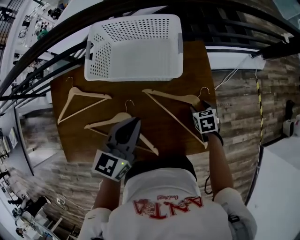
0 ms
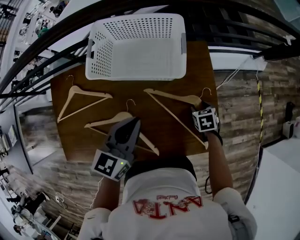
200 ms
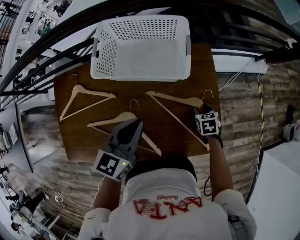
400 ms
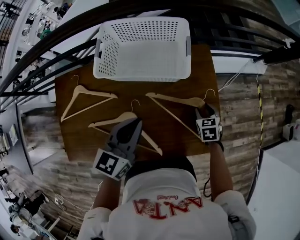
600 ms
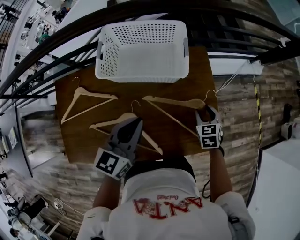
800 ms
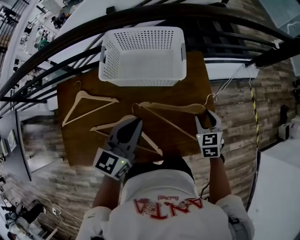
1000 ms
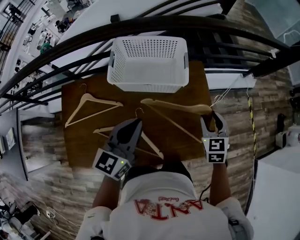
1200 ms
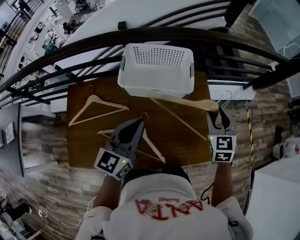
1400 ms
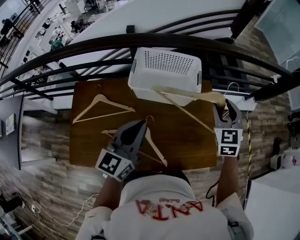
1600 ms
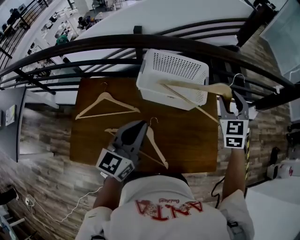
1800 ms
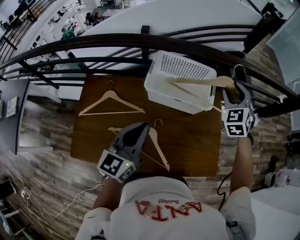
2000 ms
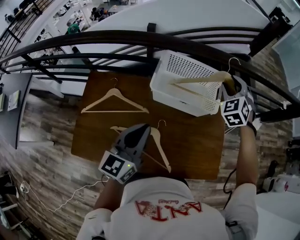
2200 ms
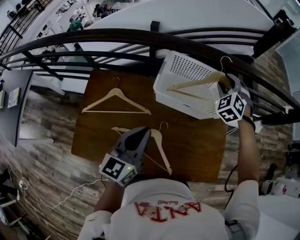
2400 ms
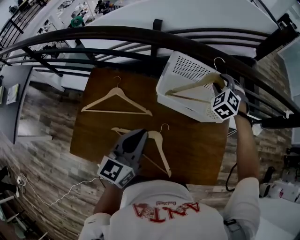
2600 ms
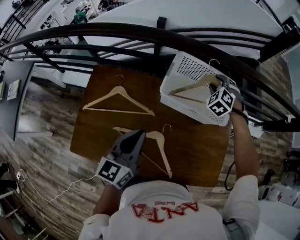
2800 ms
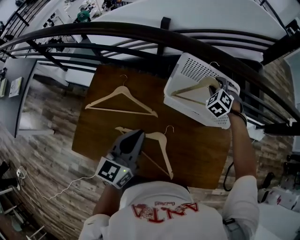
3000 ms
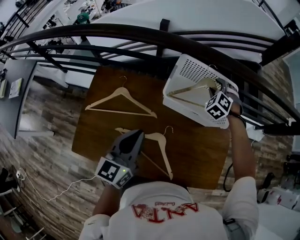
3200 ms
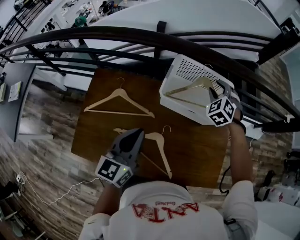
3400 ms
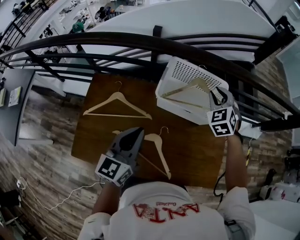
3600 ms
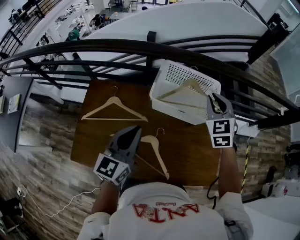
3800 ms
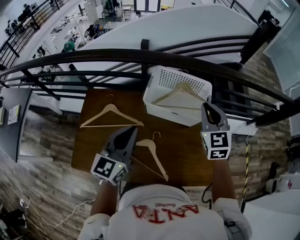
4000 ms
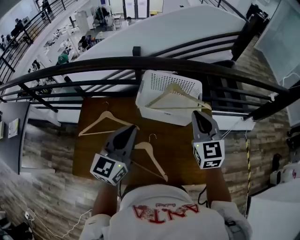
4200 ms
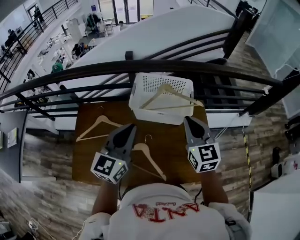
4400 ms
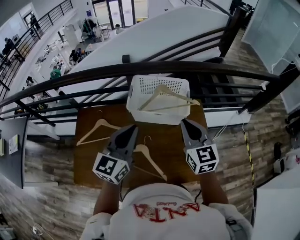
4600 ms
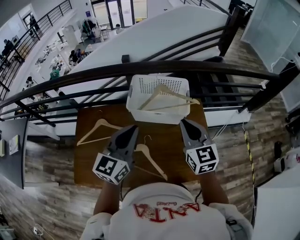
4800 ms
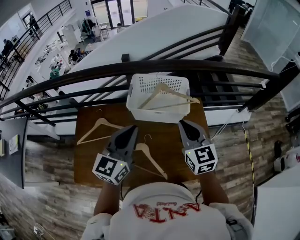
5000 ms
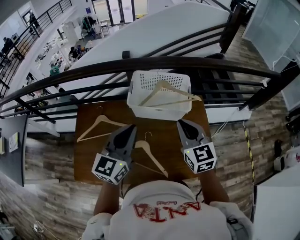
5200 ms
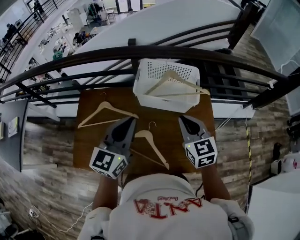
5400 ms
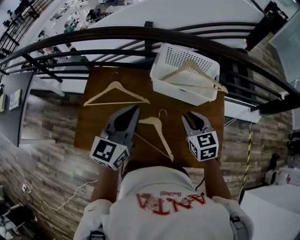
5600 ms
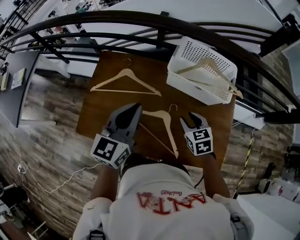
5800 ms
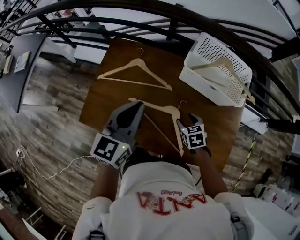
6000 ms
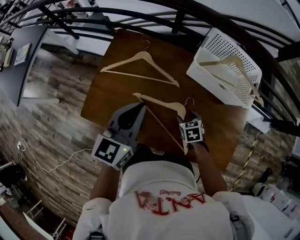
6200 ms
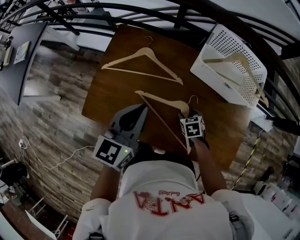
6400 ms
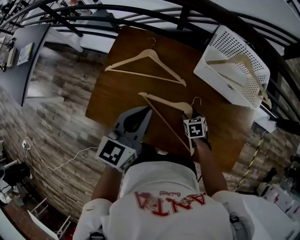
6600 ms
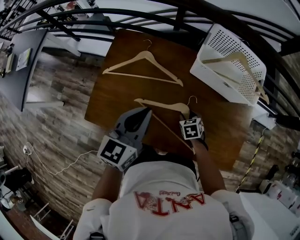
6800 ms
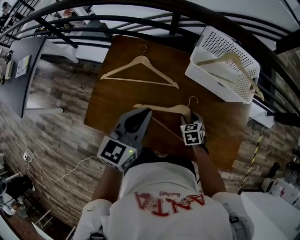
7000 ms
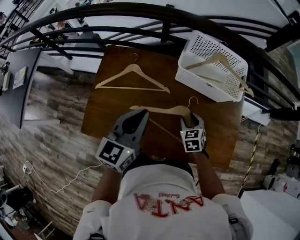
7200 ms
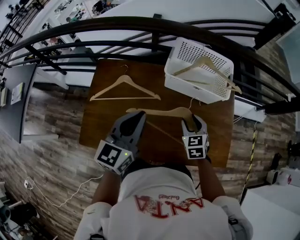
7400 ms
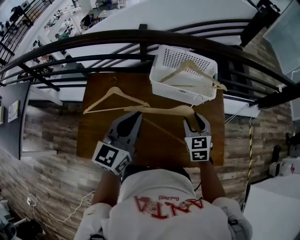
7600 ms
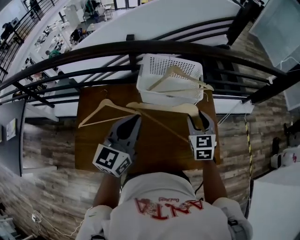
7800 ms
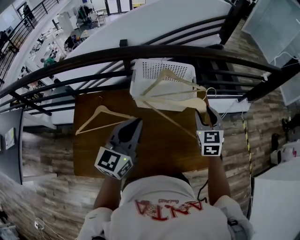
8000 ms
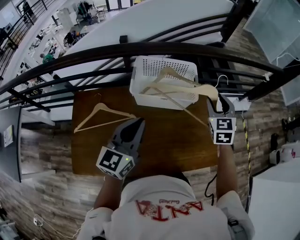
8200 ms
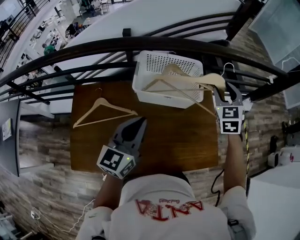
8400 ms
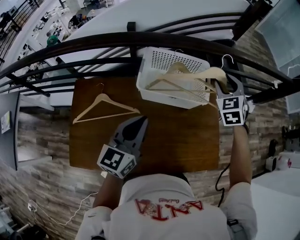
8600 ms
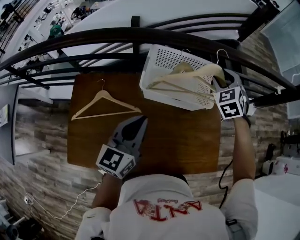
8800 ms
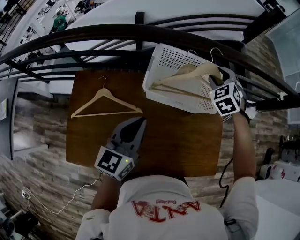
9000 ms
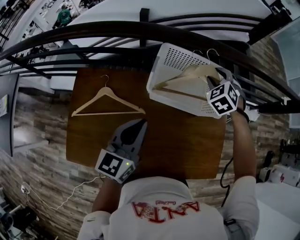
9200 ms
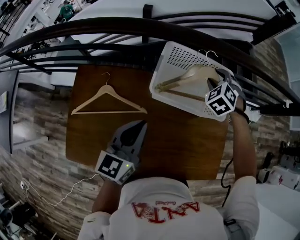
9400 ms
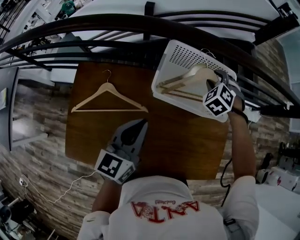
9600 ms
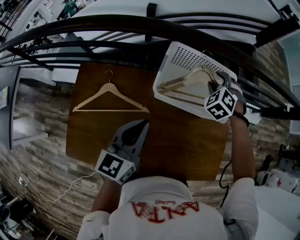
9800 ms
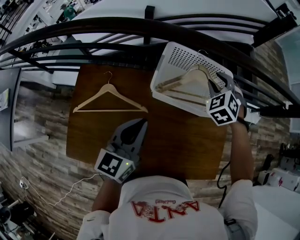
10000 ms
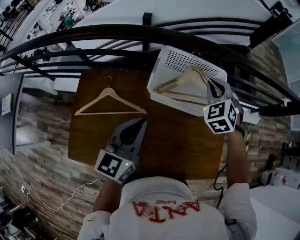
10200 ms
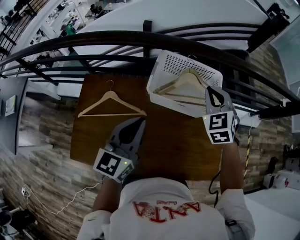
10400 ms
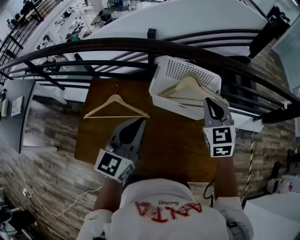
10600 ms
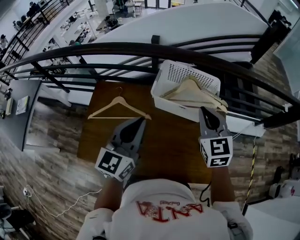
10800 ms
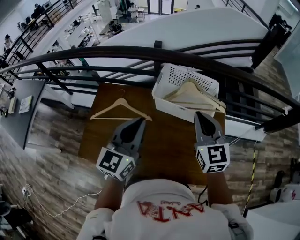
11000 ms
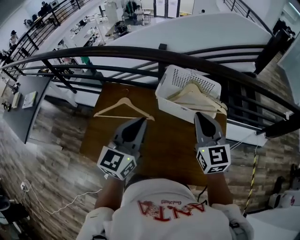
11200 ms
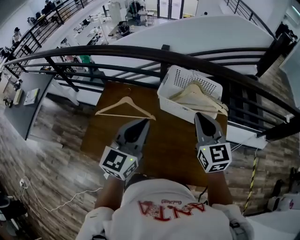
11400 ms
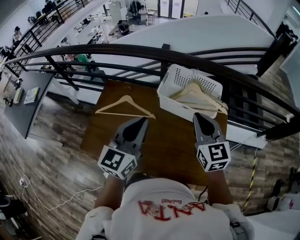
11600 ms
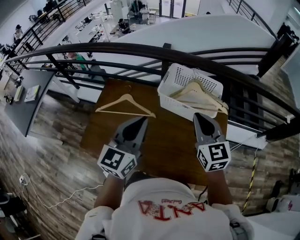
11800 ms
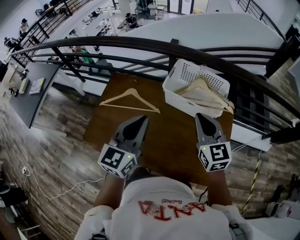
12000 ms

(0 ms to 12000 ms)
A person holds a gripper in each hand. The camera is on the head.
0 ms - 1600 ms: The left gripper moves upward, to the left and backward, some 15 cm. Meanwhile the right gripper is displaced upward by about 35 cm, and tilts its fingers about 40 degrees upward.
1600 ms - 3000 ms: The right gripper shifts approximately 30 cm forward, to the left and downward, and twists roughly 50 degrees counterclockwise, seen from behind; the left gripper heads to the left and downward, covering about 10 cm.
3000 ms - 4400 ms: The right gripper is displaced backward and upward by roughly 30 cm, rolls clockwise, seen from behind, by roughly 60 degrees, and closes up, while the left gripper travels upward and to the right by some 15 cm, and turns by about 20 degrees.
4400 ms - 6000 ms: The right gripper travels downward and to the left by roughly 35 cm, tilts its fingers some 50 degrees downward, and opens its fingers, while the left gripper travels to the left and downward by roughly 15 cm, and rotates some 20 degrees.
6000 ms - 7600 ms: The right gripper heads upward and to the right, covering some 15 cm, and rotates approximately 30 degrees. Meanwhile the left gripper heads to the right, covering roughly 5 cm.
7600 ms - 9000 ms: The right gripper is displaced forward by about 25 cm, and swivels approximately 40 degrees; the left gripper heads forward, covering some 10 cm.
9000 ms - 10400 ms: The right gripper shifts approximately 10 cm backward and upward, and closes up.
10400 ms - 12000 ms: The left gripper heads backward, covering roughly 10 cm; the right gripper is displaced backward by approximately 15 cm, and changes its angle by approximately 40 degrees.

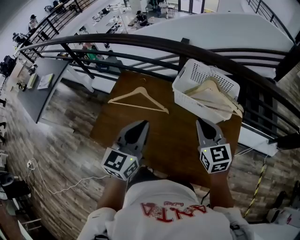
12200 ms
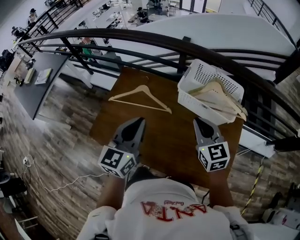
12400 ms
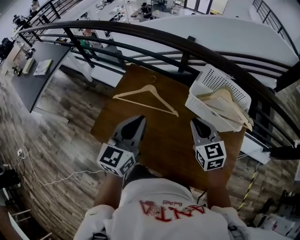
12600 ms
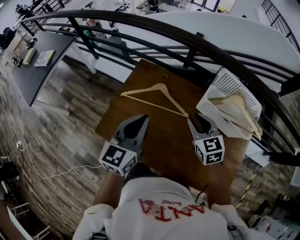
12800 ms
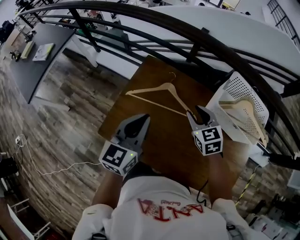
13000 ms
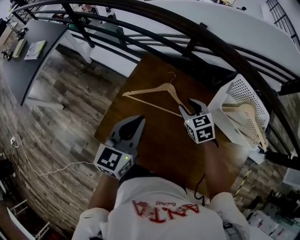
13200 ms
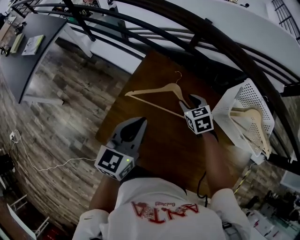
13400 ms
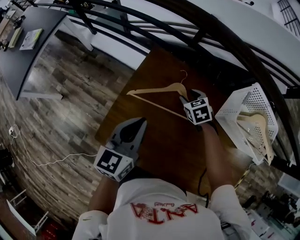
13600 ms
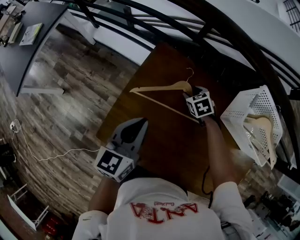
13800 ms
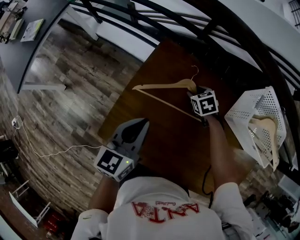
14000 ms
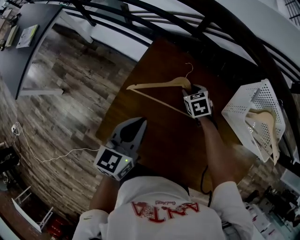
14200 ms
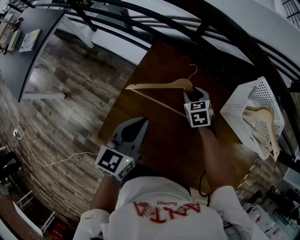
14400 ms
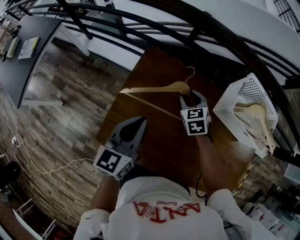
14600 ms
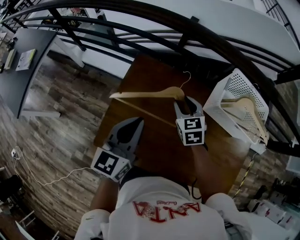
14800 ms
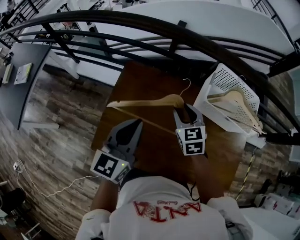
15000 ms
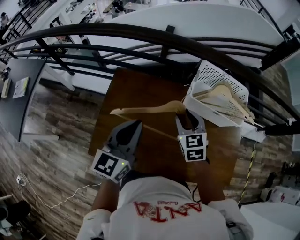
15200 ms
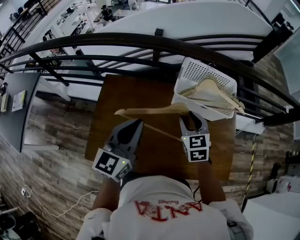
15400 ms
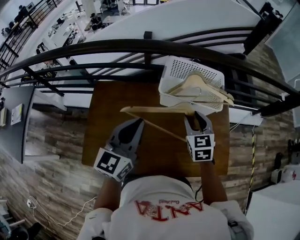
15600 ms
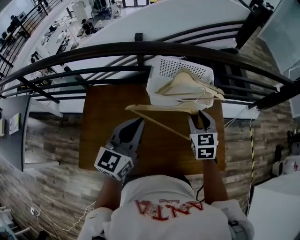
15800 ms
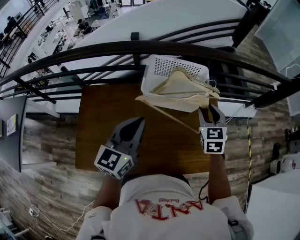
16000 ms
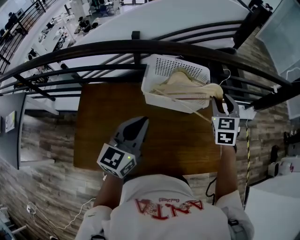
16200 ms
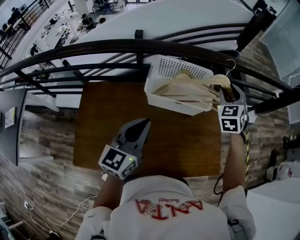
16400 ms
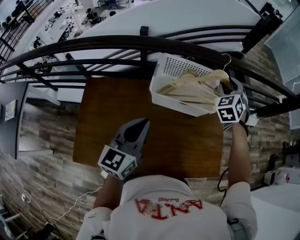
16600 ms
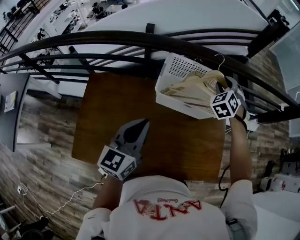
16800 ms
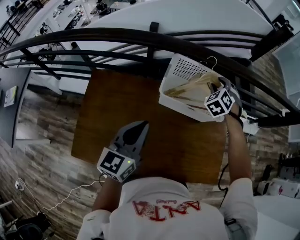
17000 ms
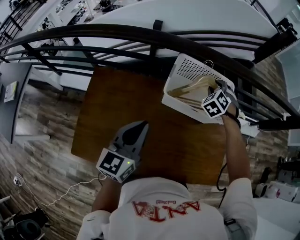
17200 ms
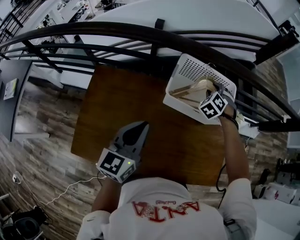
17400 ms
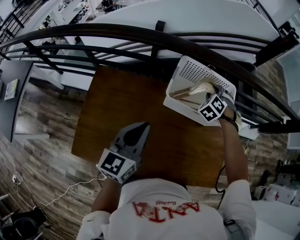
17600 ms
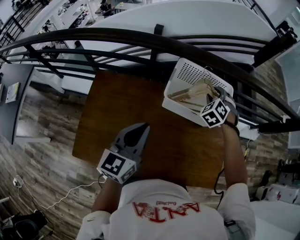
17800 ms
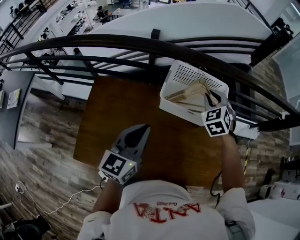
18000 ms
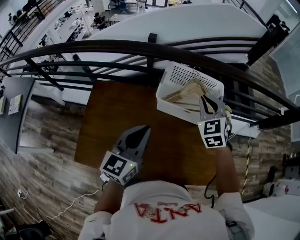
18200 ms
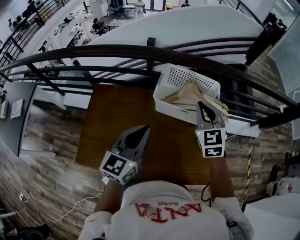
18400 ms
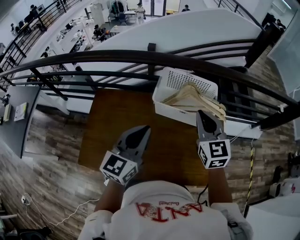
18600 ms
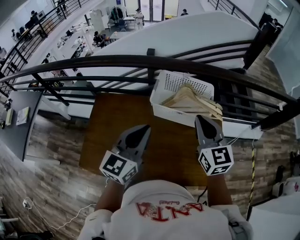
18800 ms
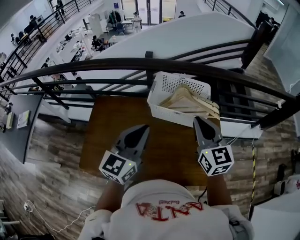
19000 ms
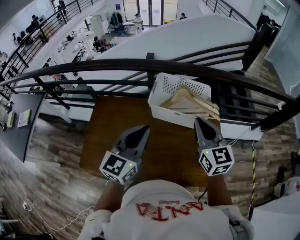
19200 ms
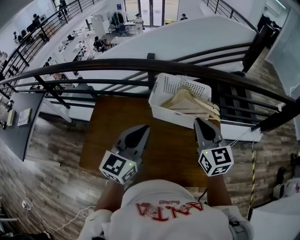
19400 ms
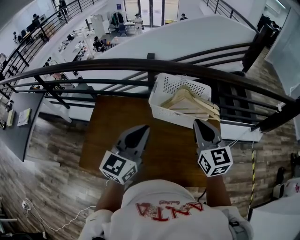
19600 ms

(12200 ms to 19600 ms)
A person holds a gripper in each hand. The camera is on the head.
12200 ms - 13600 ms: The left gripper shifts some 35 cm to the left, forward and downward, while the right gripper heads forward, downward and to the left, covering some 50 cm, points its fingers roughly 40 degrees further downward, and opens.
13600 ms - 15200 ms: The right gripper goes some 25 cm upward, backward and to the right, and changes its angle by approximately 30 degrees. The left gripper travels upward and to the right by approximately 15 cm.
15200 ms - 16600 ms: The right gripper ends up about 40 cm from where it was, and turns by roughly 40 degrees. The left gripper moves approximately 20 cm.
16600 ms - 18200 ms: The right gripper goes roughly 15 cm to the left and backward, reaches some 15 cm downward, then returns, rotates about 20 degrees, and closes.
18200 ms - 19600 ms: The right gripper goes approximately 15 cm backward and upward, and rotates approximately 40 degrees; the left gripper is displaced upward by approximately 5 cm.

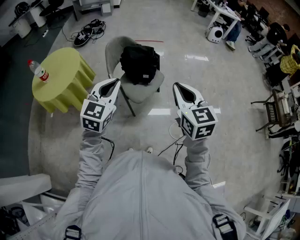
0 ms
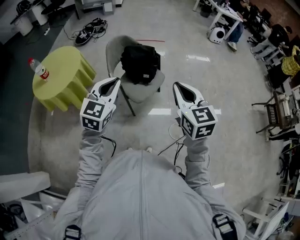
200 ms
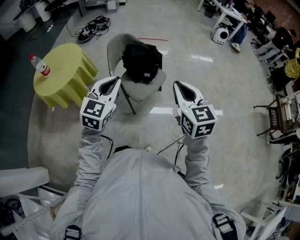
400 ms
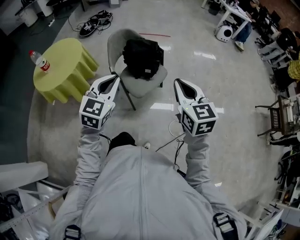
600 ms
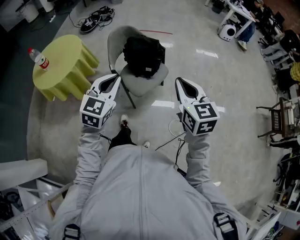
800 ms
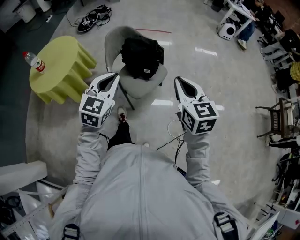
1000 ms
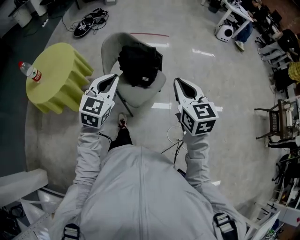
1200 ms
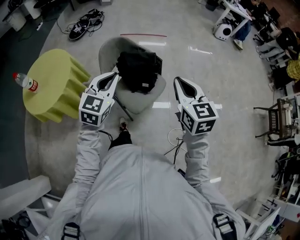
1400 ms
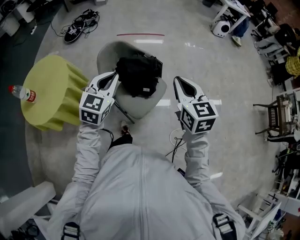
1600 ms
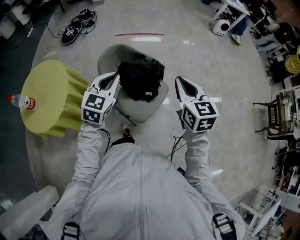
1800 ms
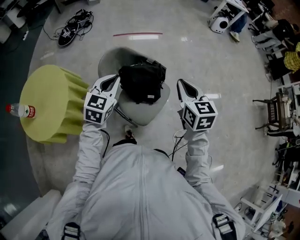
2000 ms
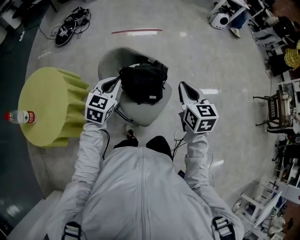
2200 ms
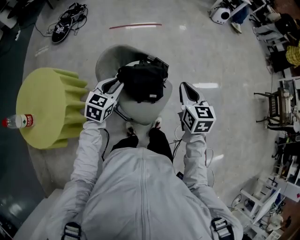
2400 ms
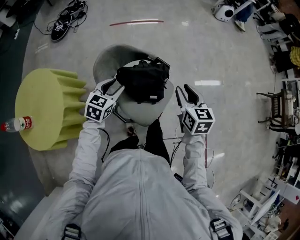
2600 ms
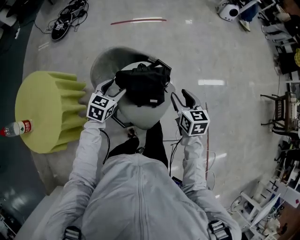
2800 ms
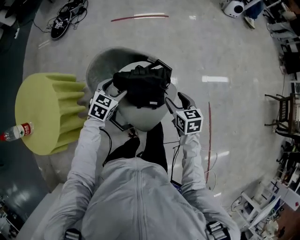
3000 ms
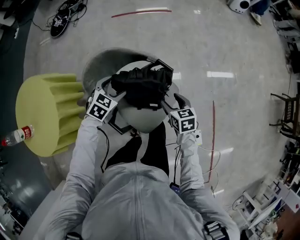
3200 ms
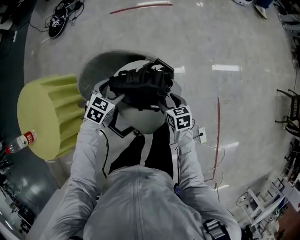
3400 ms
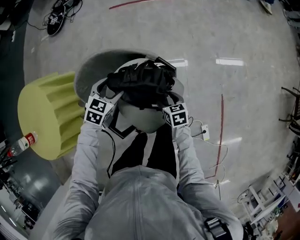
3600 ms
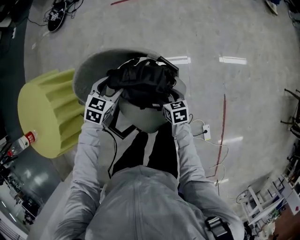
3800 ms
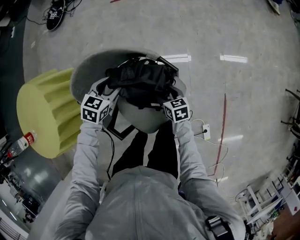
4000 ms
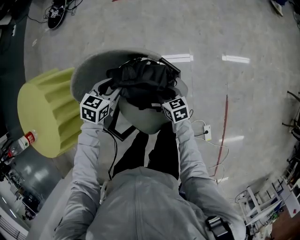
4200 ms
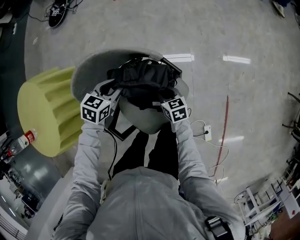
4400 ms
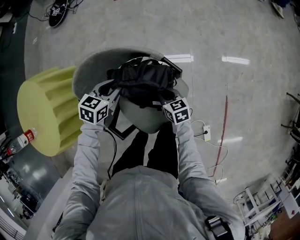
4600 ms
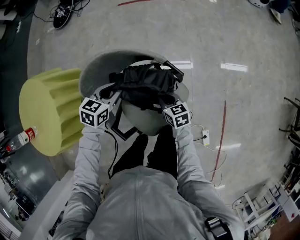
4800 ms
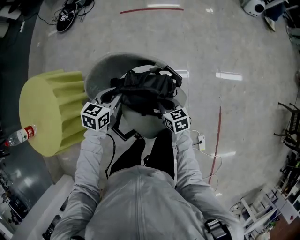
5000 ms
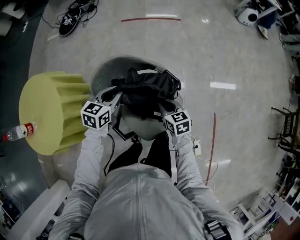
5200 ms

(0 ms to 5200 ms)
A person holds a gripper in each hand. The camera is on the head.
0 ms - 1800 ms: The grippers both shift forward by some 30 cm.
1800 ms - 3400 ms: The right gripper is displaced downward by some 40 cm, turns by about 40 degrees, and opens its fingers. Meanwhile the left gripper goes roughly 35 cm downward and forward, points its fingers roughly 30 degrees further downward, and opens up.
3400 ms - 5200 ms: The right gripper heads upward and to the left, covering about 10 cm, and closes its fingers; the left gripper moves upward, roughly 5 cm, changes its angle by some 30 degrees, and closes up.
